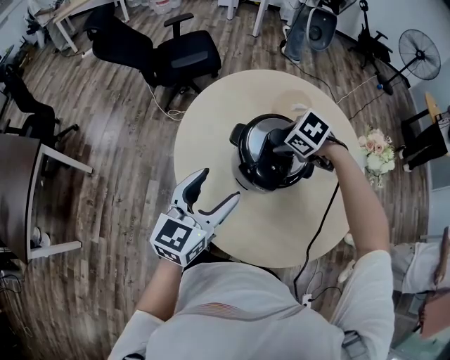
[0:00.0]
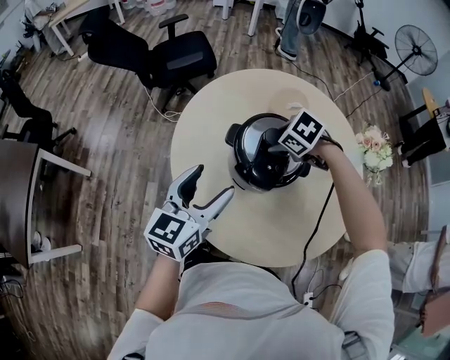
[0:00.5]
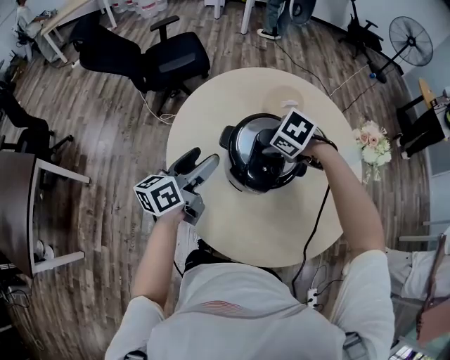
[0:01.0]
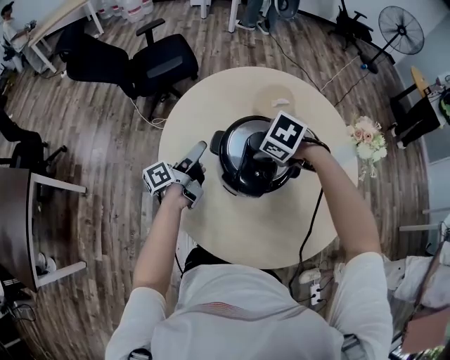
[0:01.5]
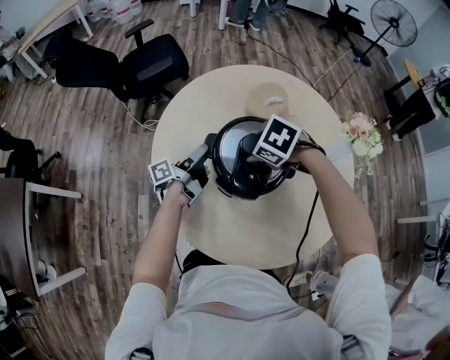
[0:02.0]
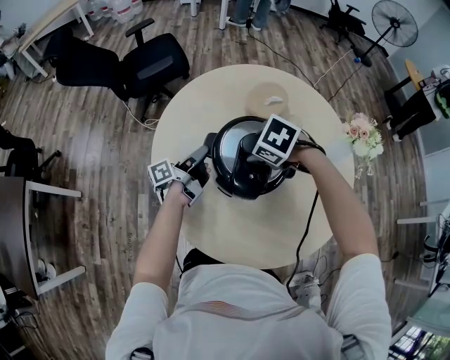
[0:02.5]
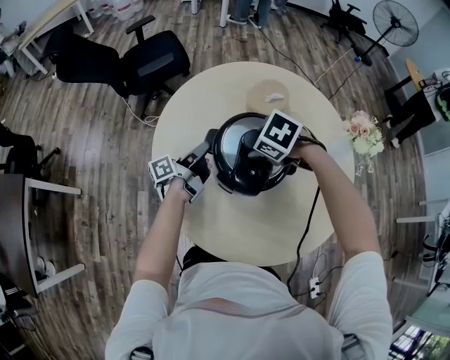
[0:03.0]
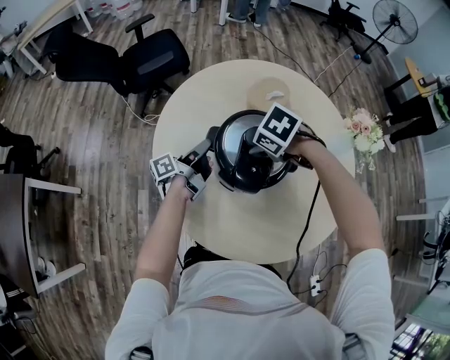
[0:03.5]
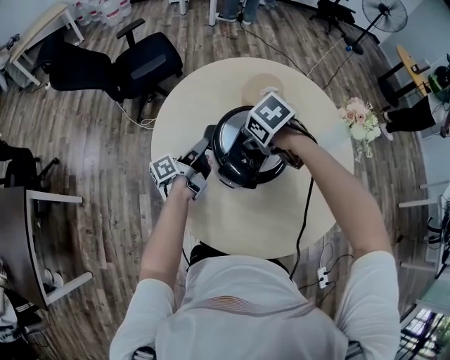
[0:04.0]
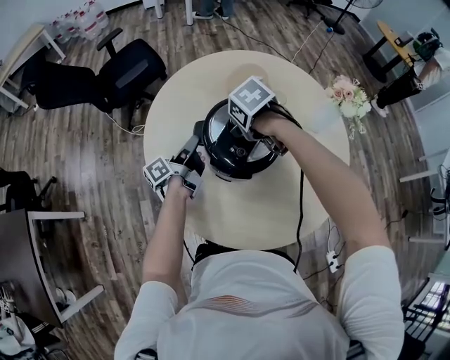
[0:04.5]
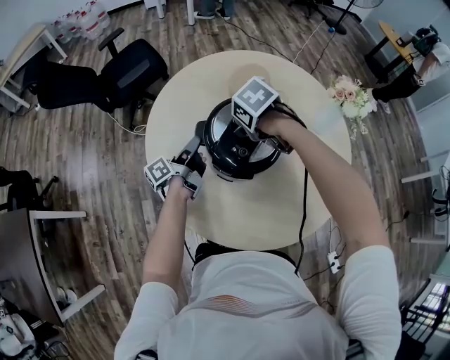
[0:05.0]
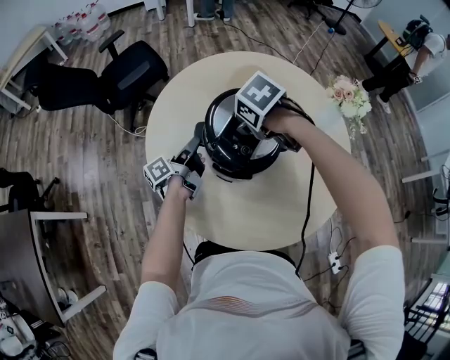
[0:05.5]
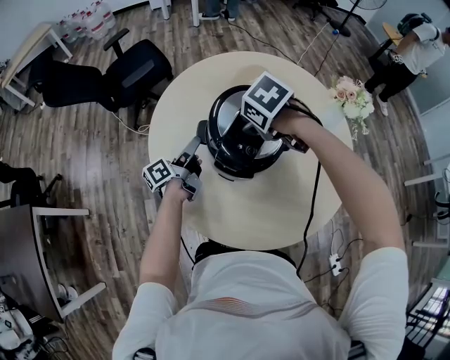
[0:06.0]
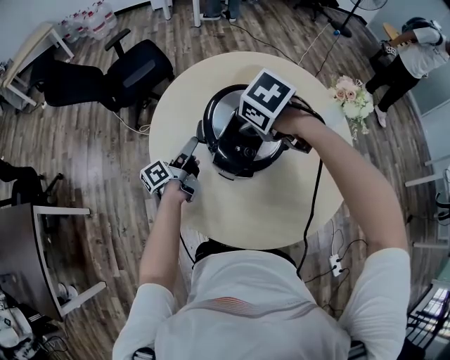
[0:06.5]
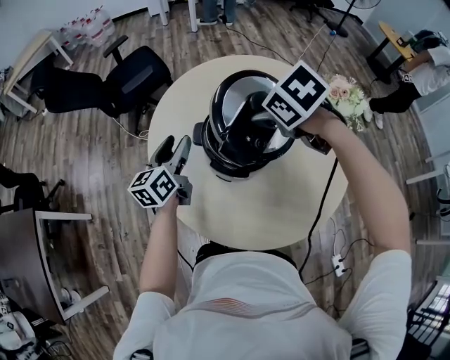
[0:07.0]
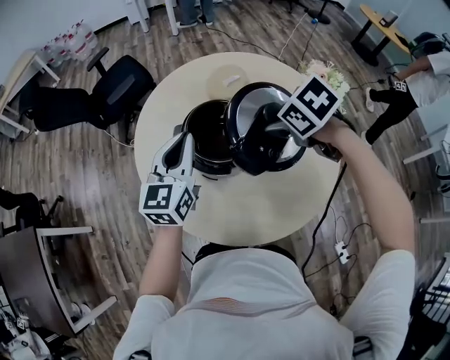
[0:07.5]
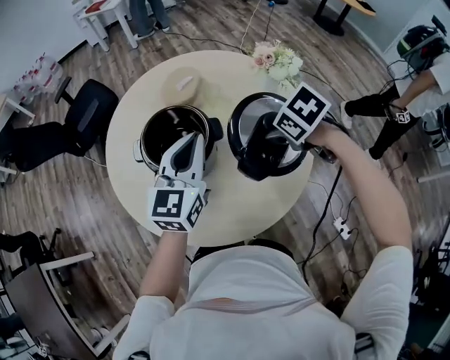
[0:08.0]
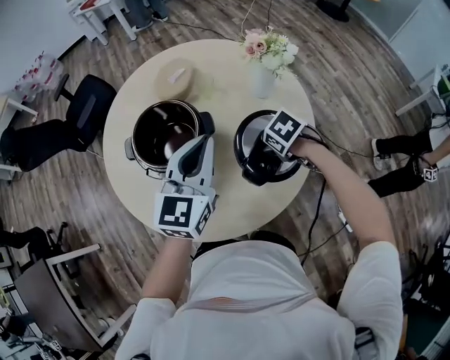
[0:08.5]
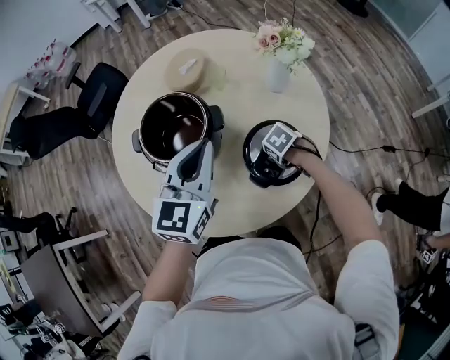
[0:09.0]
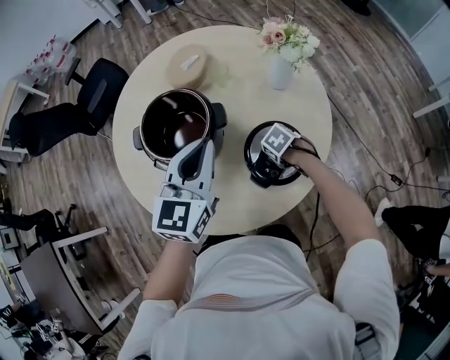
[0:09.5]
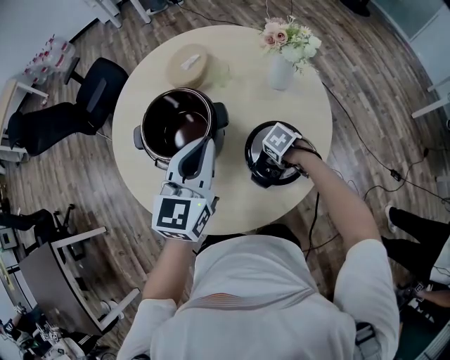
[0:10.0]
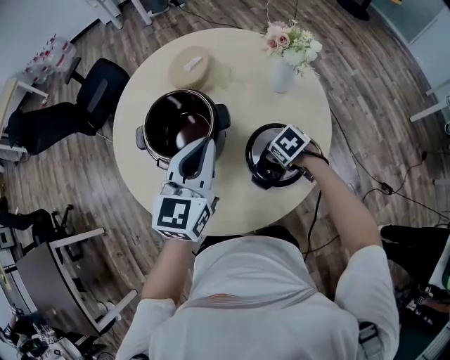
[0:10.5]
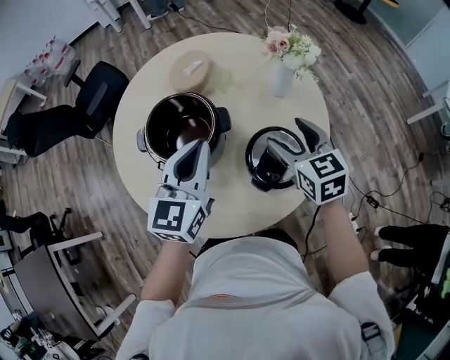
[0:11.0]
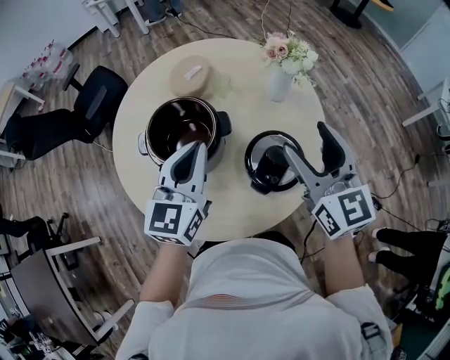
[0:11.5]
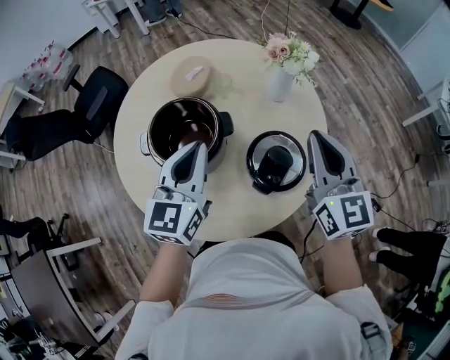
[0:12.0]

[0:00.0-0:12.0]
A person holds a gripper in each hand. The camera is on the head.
0:00.0 to 0:02.0: The left gripper ends up approximately 25 cm from where it was, and rolls counterclockwise, seen from behind, by roughly 70 degrees.
0:02.0 to 0:04.0: The right gripper turns by about 30 degrees, while the left gripper closes.
0:04.0 to 0:06.0: The right gripper moves about 5 cm. The left gripper opens its fingers.
0:06.0 to 0:08.0: The left gripper moves some 30 cm, rotates around the line of its fingers by about 70 degrees, clockwise from behind, and closes, while the right gripper moves roughly 10 cm upward and comes back.
0:08.0 to 0:10.0: The right gripper moves downward, some 25 cm.
0:10.0 to 0:12.0: The left gripper shifts by about 5 cm. Meanwhile the right gripper goes roughly 40 cm upward, tips its fingers upward by roughly 80 degrees, and closes its fingers.

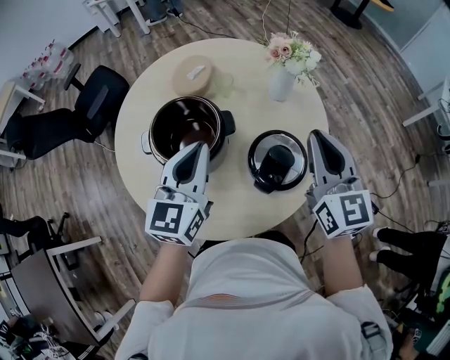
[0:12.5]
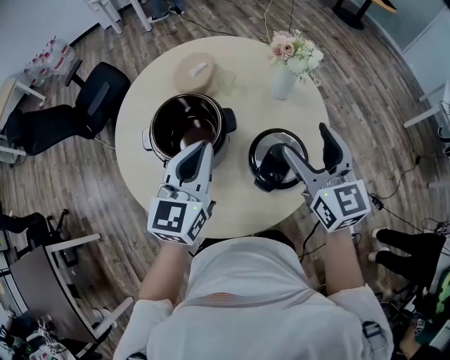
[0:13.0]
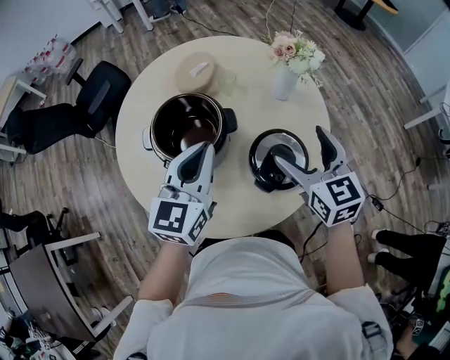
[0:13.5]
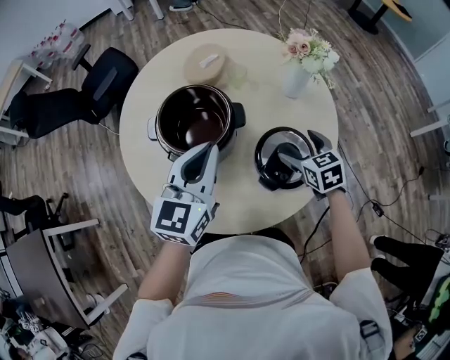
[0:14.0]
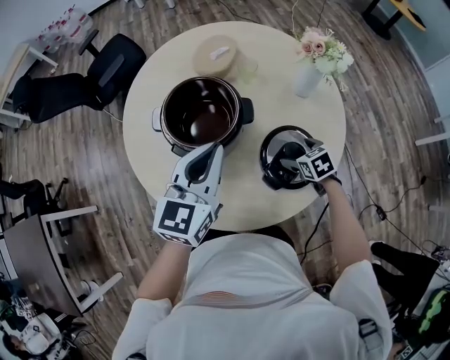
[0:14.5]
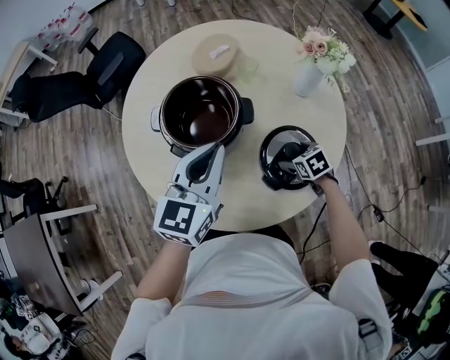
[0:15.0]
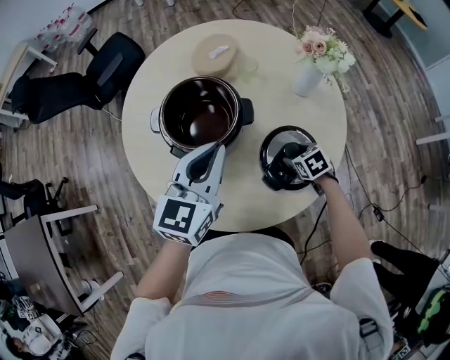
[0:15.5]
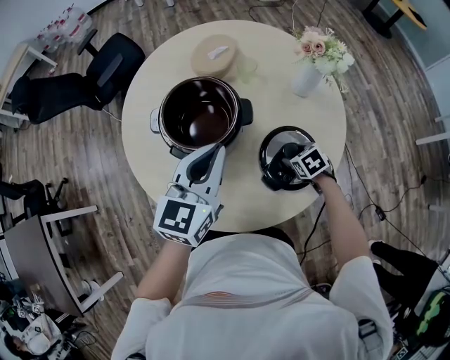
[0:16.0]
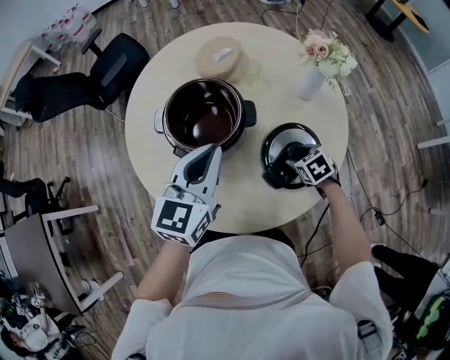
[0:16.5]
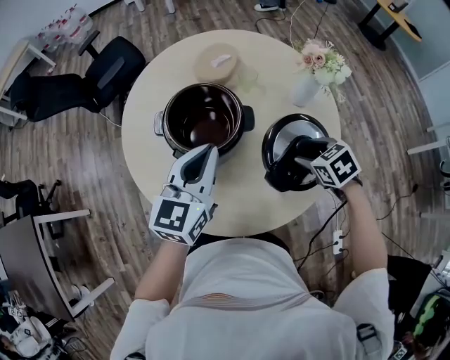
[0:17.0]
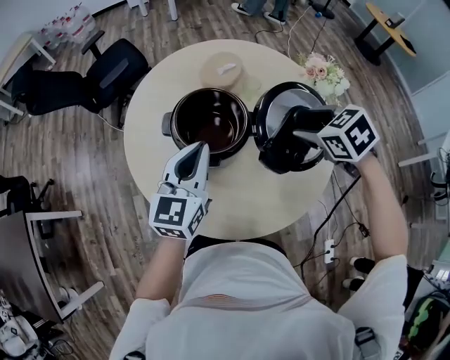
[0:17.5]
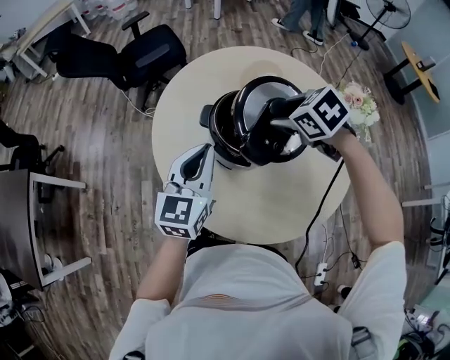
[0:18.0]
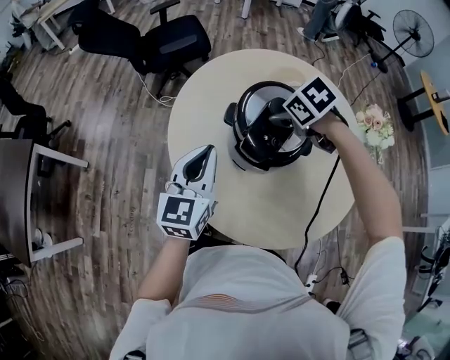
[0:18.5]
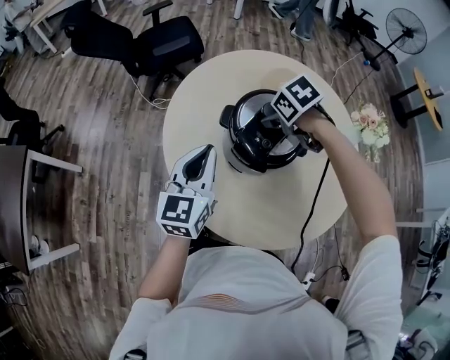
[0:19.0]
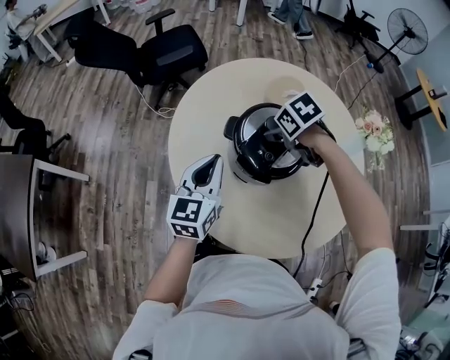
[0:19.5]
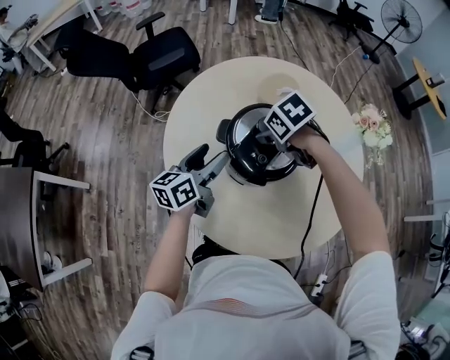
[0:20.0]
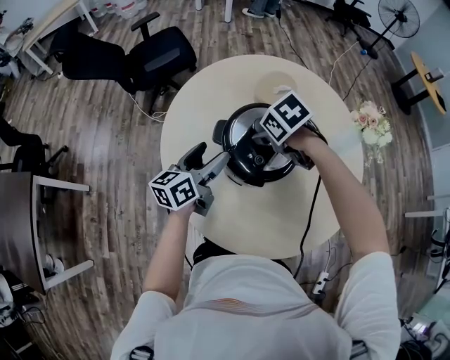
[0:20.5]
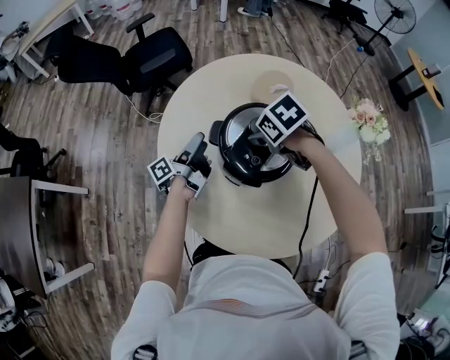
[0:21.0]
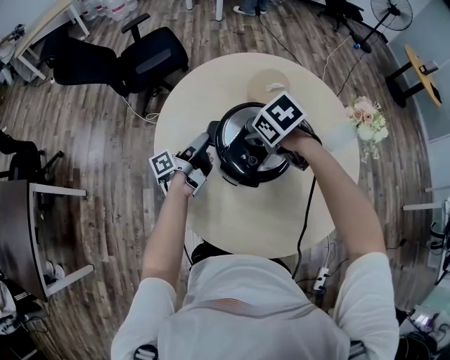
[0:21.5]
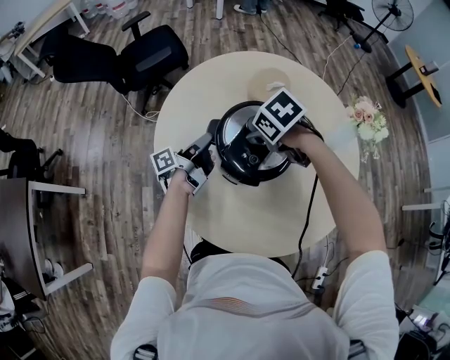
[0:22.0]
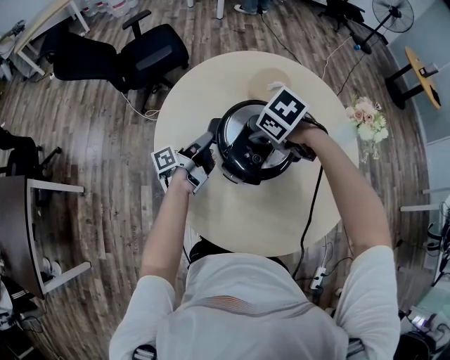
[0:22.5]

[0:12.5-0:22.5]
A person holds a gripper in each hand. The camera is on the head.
0:12.5 to 0:14.5: The right gripper heads downward, covering about 35 cm, tips its fingers downward by roughly 50 degrees, and opens.
0:14.5 to 0:16.5: The right gripper closes its fingers.
0:16.5 to 0:18.5: The right gripper moves about 40 cm, and turns by some 30 degrees, while the left gripper shifts by some 20 cm, and rotates about 30 degrees.
0:18.5 to 0:20.5: The left gripper ends up some 15 cm from where it was, changes its angle by roughly 30 degrees, and opens its fingers.
0:20.5 to 0:22.5: The left gripper shifts approximately 10 cm downward and forward, rotates around the line of its fingers by about 50 degrees, counterclockwise from behind, and closes.

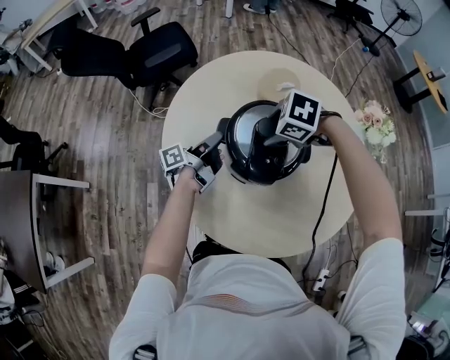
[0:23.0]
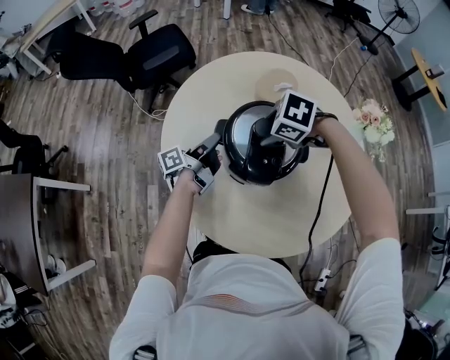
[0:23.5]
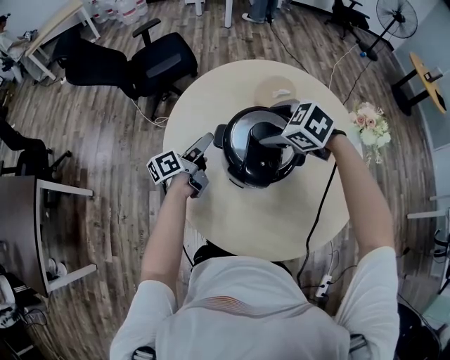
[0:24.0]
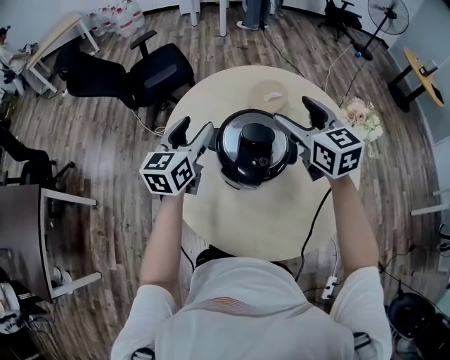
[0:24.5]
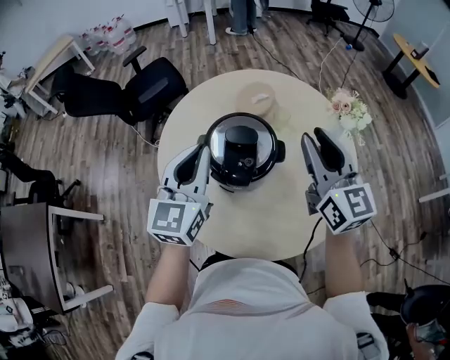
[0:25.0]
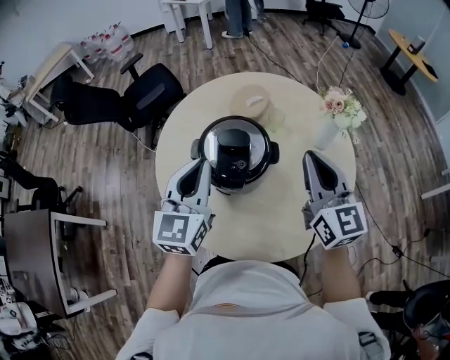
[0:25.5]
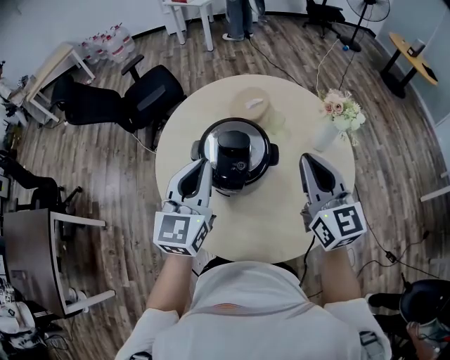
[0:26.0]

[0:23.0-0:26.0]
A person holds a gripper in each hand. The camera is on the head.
0:23.0 to 0:24.5: The grippers both shift upward by some 20 cm. The left gripper rolls clockwise, seen from behind, by some 70 degrees, and opens. The right gripper tilts its fingers some 50 degrees upward.
0:24.5 to 0:26.0: The right gripper is displaced backward and to the right by approximately 20 cm, turns by approximately 20 degrees, and closes up; the left gripper heads backward, to the right and upward, covering about 20 cm, and closes its fingers.

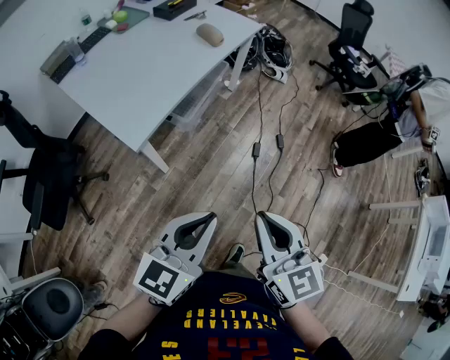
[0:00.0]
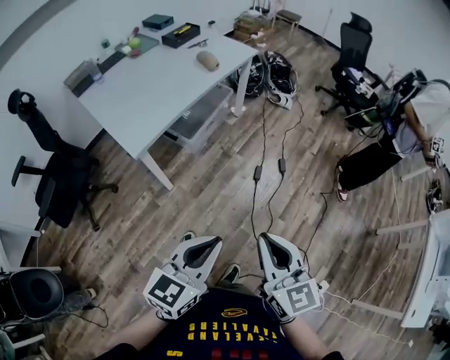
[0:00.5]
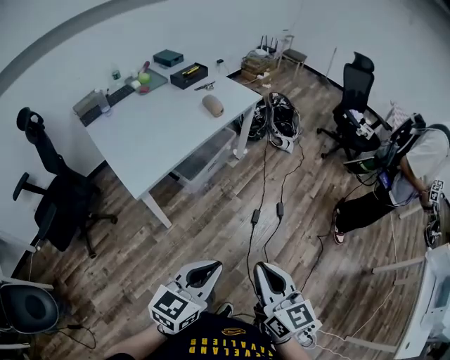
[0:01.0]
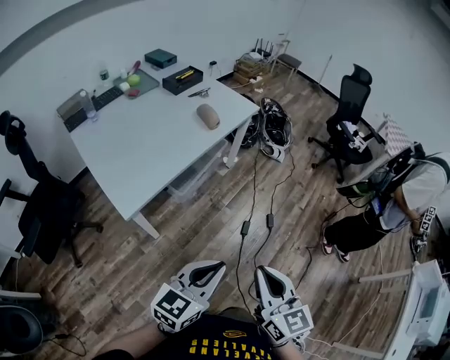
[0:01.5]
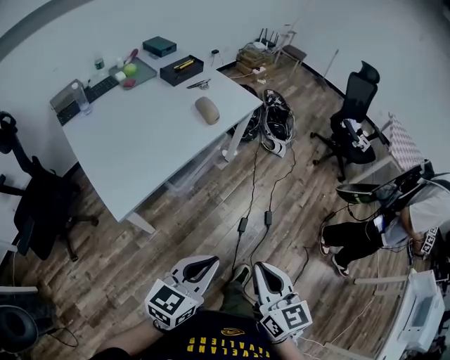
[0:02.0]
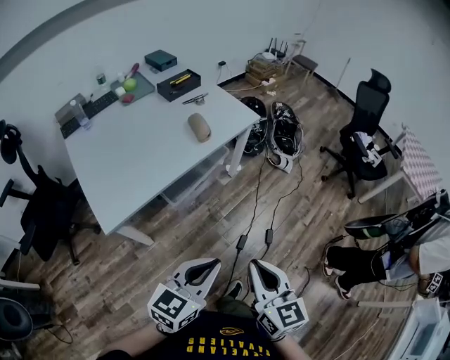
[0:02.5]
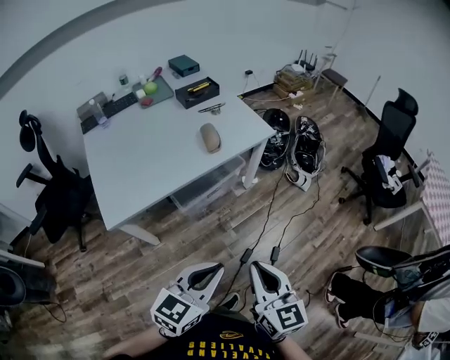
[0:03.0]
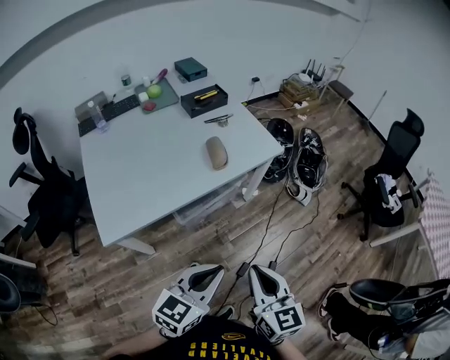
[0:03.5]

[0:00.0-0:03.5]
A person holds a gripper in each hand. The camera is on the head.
0:00.0 to 0:02.0: Both grippers travel together forward and to the right, about 20 cm.
0:02.0 to 0:03.5: The right gripper goes approximately 25 cm forward; the left gripper heads forward and to the right, covering some 25 cm.
